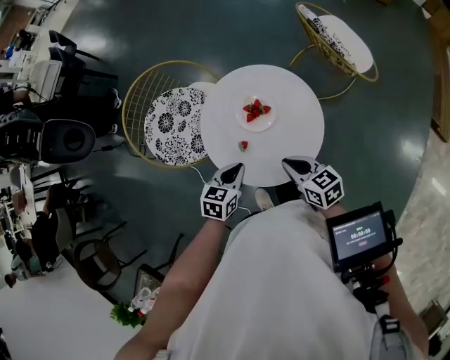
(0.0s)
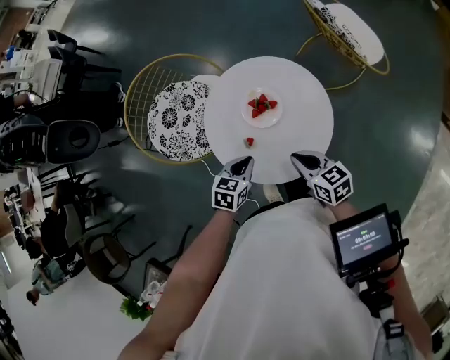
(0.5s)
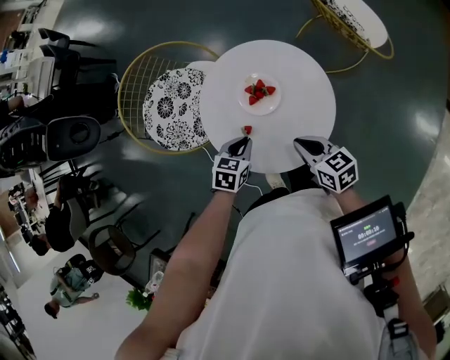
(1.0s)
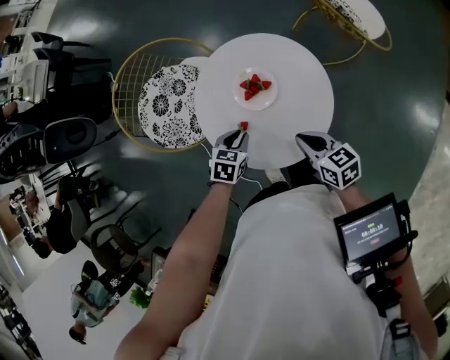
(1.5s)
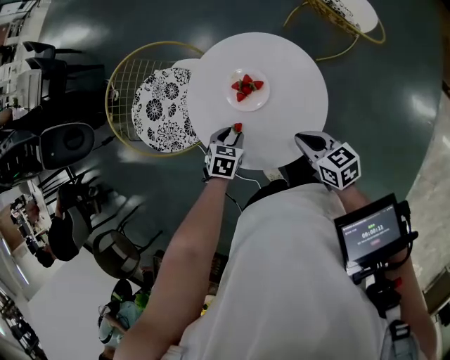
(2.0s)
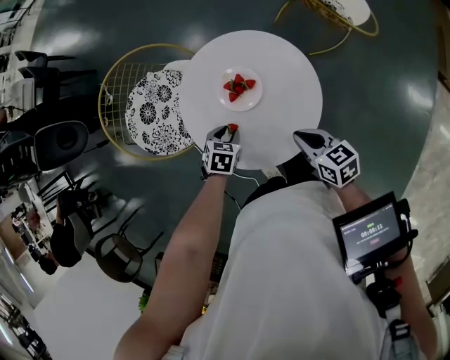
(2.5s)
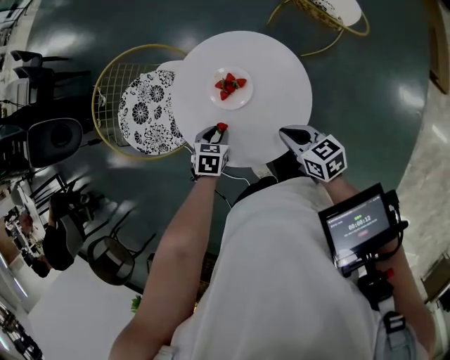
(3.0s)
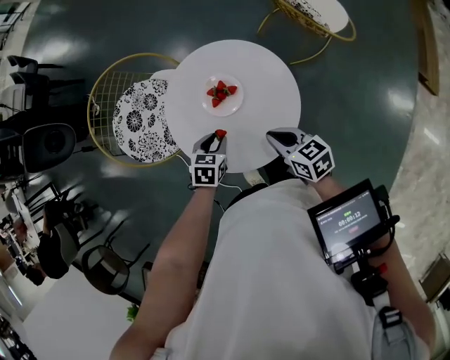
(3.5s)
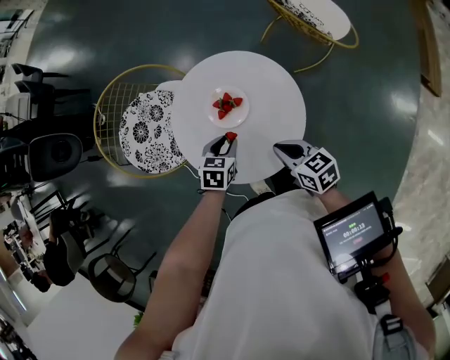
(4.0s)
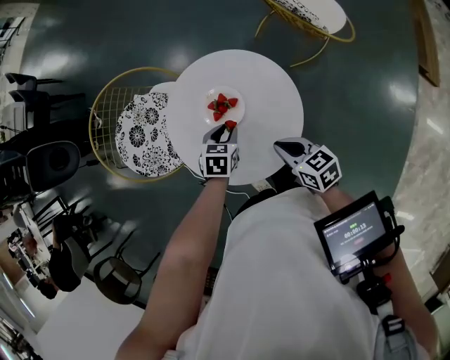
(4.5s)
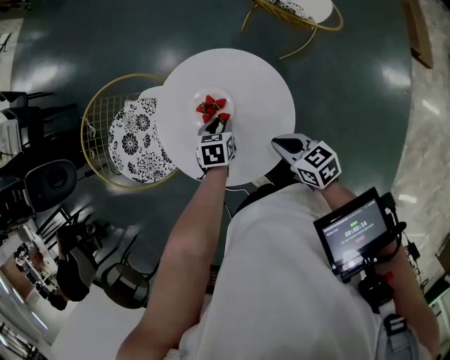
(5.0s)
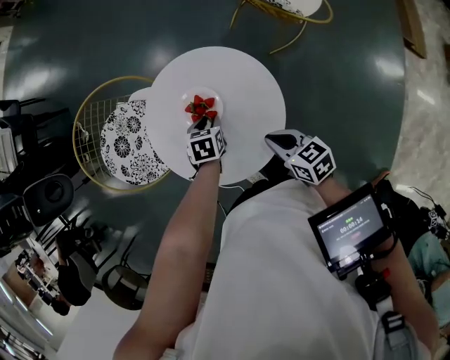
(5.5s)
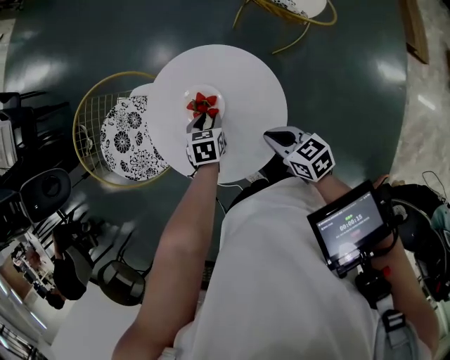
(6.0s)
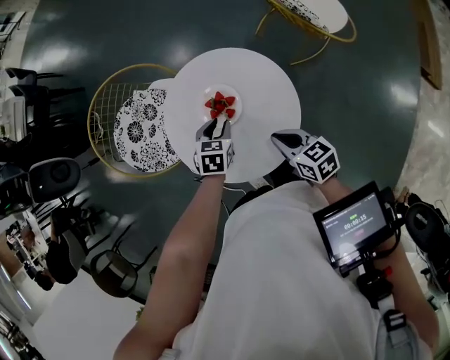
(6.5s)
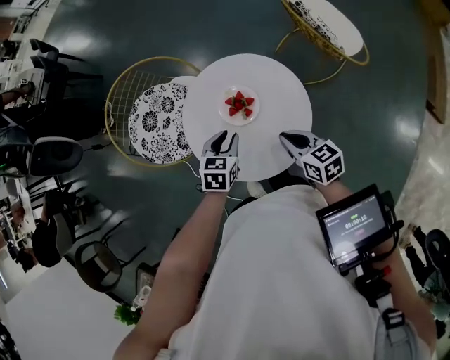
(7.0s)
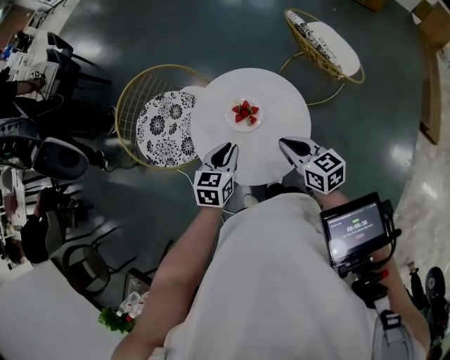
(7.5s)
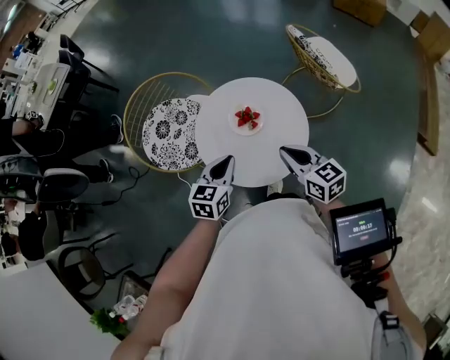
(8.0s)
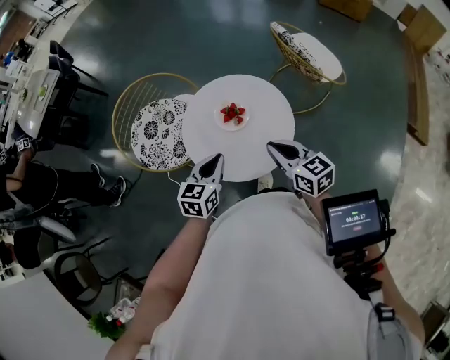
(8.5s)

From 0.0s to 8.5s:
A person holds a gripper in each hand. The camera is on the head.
From 0.0s to 2.0s: The left gripper heads downward and forward, covering some 15 cm, rotates approximately 30 degrees, and opens its fingers. Meanwhile the right gripper ends up roughly 5 cm from where it was.
From 2.0s to 4.0s: The left gripper moves to the right, about 5 cm.
From 6.5s to 8.5s: The right gripper goes some 10 cm upward, and rotates about 20 degrees. Meanwhile the left gripper goes some 20 cm upward and backward, swivels roughly 30 degrees, and closes its fingers.

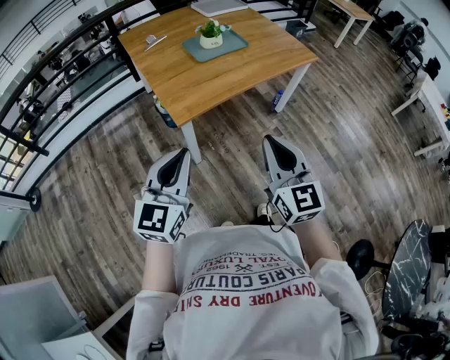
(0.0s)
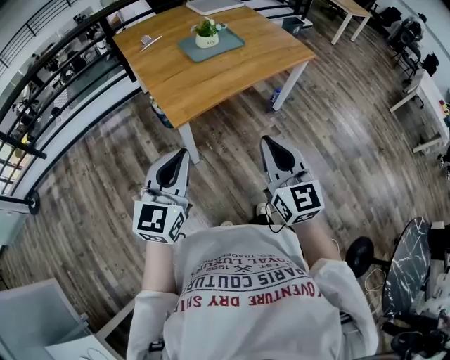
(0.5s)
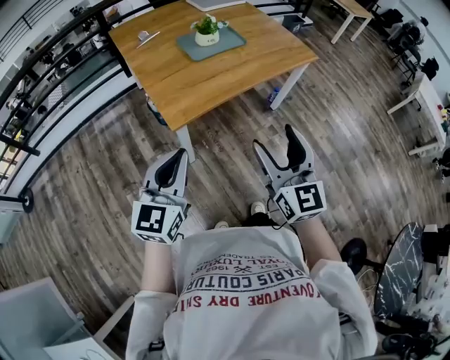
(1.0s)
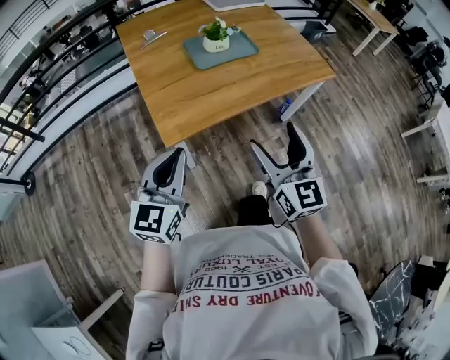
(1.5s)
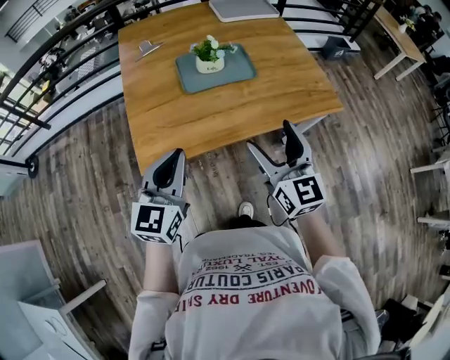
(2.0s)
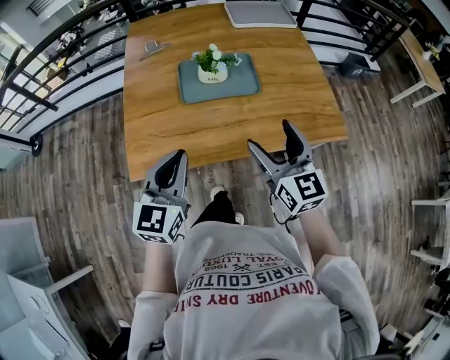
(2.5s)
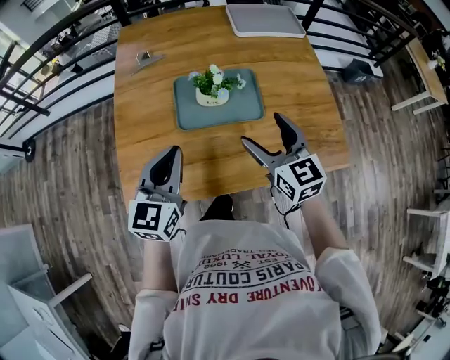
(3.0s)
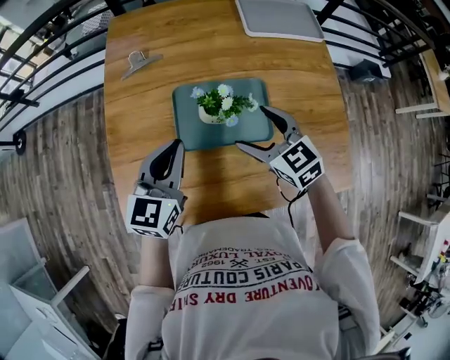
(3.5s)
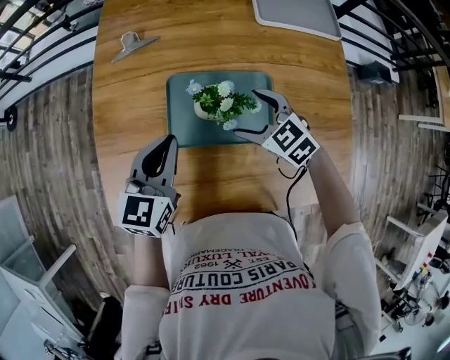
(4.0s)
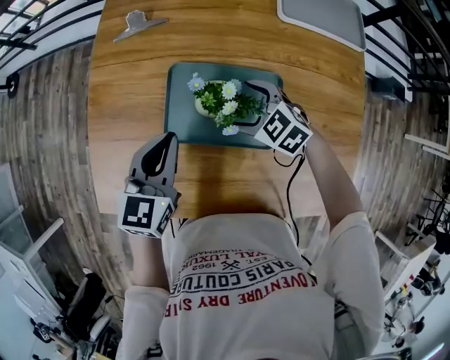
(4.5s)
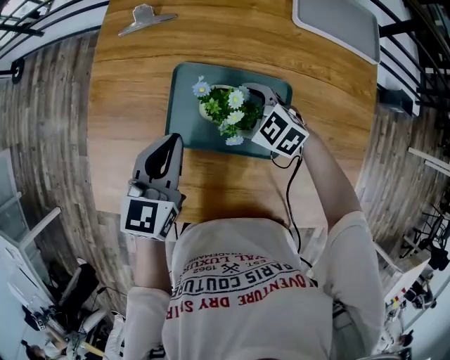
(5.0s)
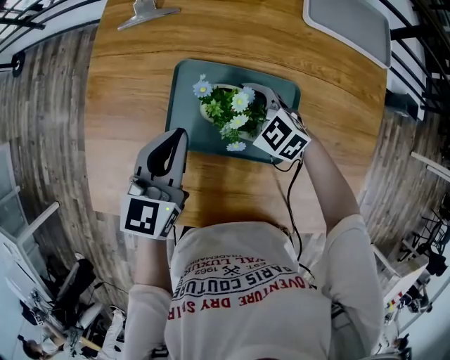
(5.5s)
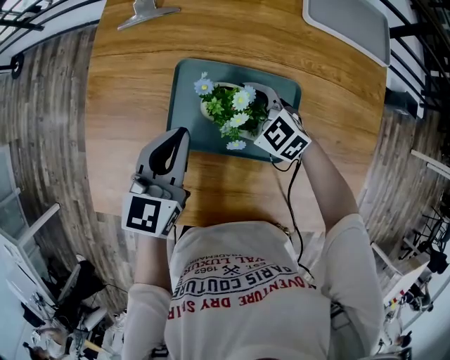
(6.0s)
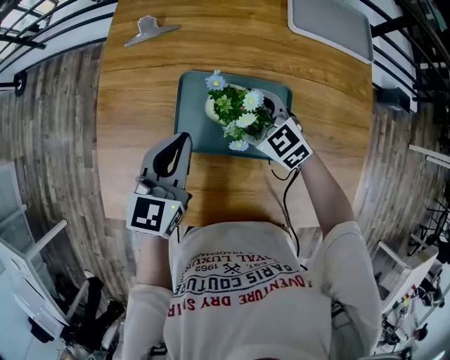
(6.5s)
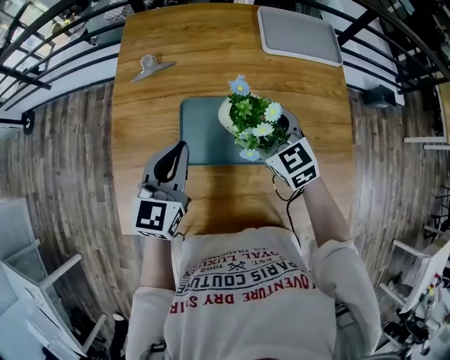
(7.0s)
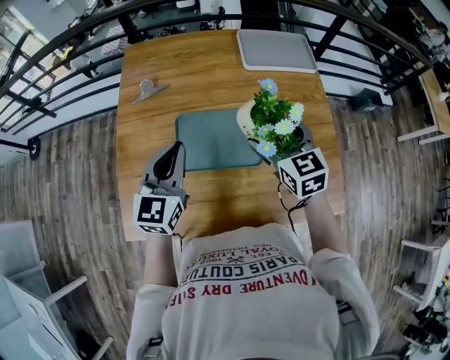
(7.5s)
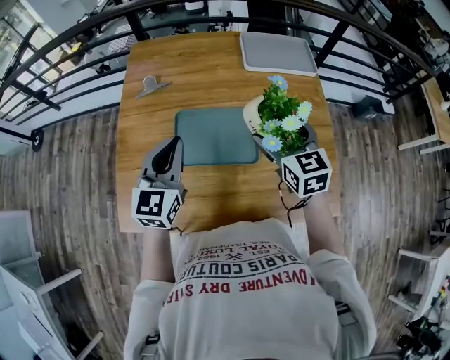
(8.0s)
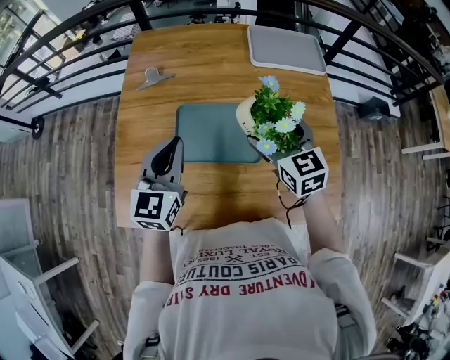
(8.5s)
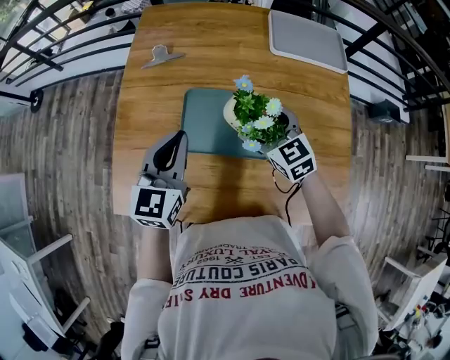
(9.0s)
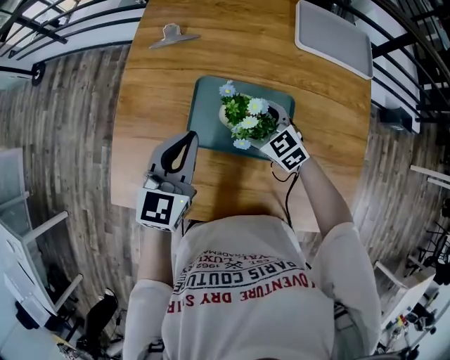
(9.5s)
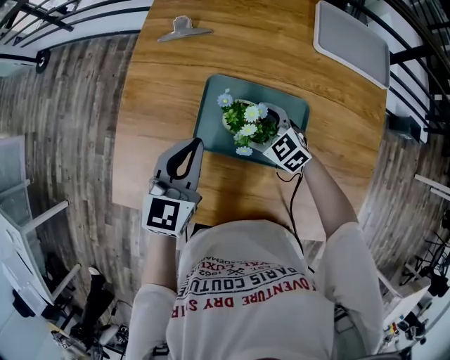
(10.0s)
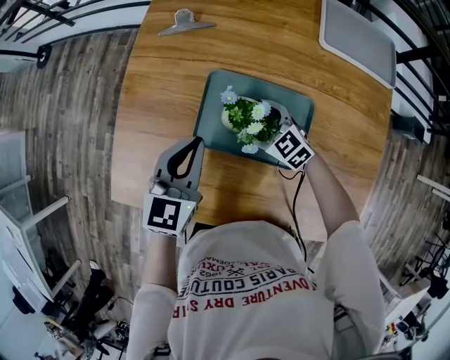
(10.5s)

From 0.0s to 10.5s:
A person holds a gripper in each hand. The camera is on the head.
From 0.0s to 2.0s: The right gripper is displaced forward by approximately 35 cm, and opens. Meanwhile the left gripper goes about 30 cm forward and to the right.
From 2.0s to 4.0s: The left gripper changes place by roughly 35 cm. The right gripper moves roughly 40 cm, and points its fingers approximately 40 degrees further downward.
From 4.0s to 6.5s: The right gripper shifts roughly 5 cm forward.
From 6.5s to 8.5s: The right gripper moves upward and to the right, about 20 cm, and turns by roughly 30 degrees. Meanwhile the left gripper heads upward, covering some 10 cm.
From 8.5s to 10.5s: The right gripper moves downward and to the left, roughly 30 cm, and rotates about 40 degrees; the left gripper travels downward by about 10 cm.

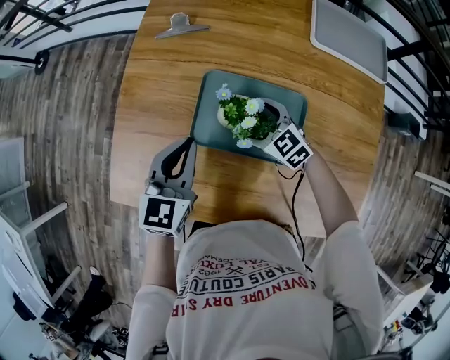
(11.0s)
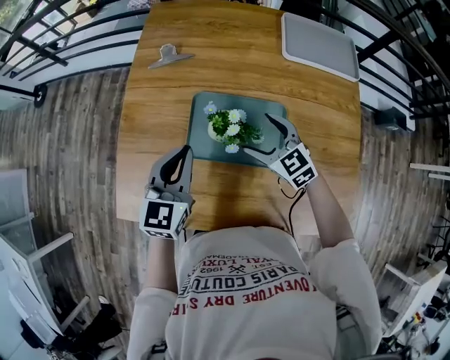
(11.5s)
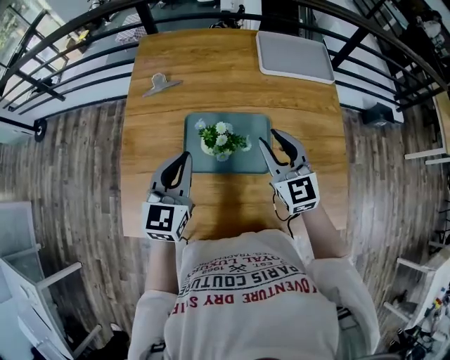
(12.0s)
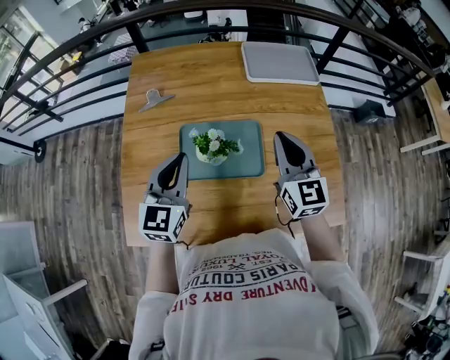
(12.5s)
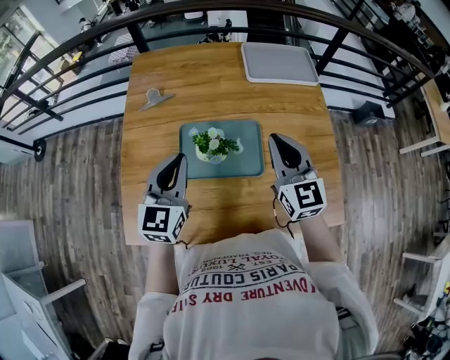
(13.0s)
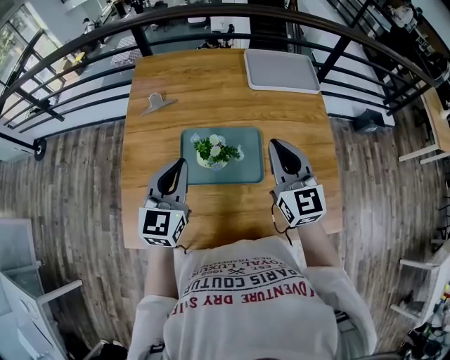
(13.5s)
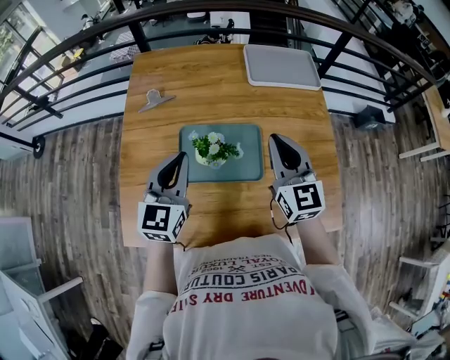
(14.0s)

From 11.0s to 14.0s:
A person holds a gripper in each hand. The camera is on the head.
From 11.0s to 12.5s: The right gripper goes some 25 cm upward, rotates approximately 60 degrees, and closes up; the left gripper is displaced upward by roughly 10 cm.
From 12.5s to 14.0s: There are only small adjustments of the grippers.

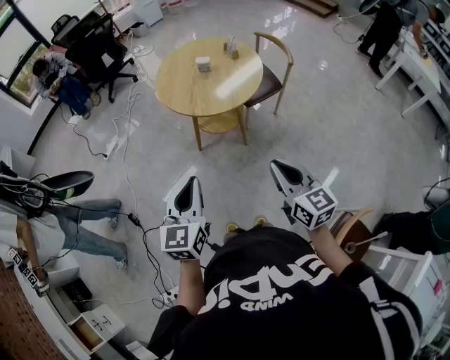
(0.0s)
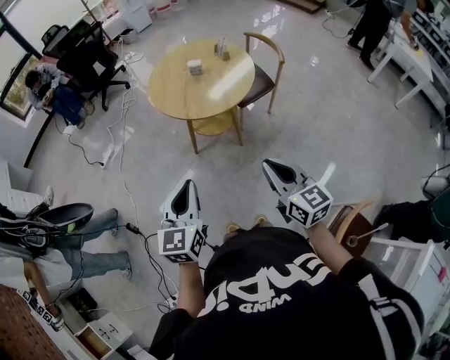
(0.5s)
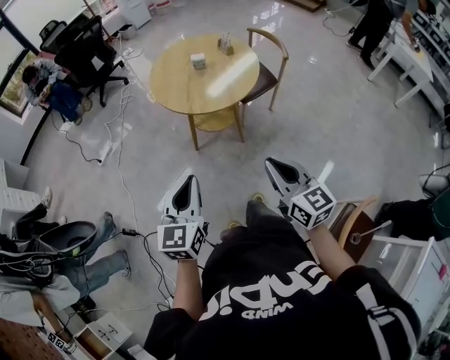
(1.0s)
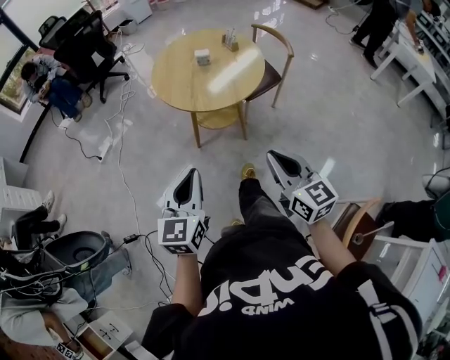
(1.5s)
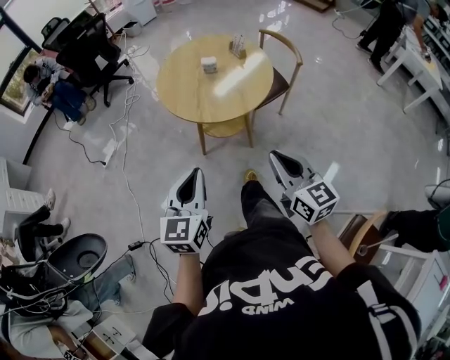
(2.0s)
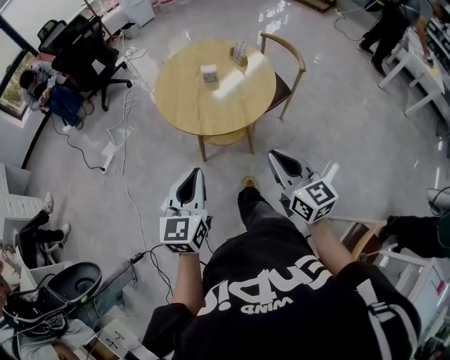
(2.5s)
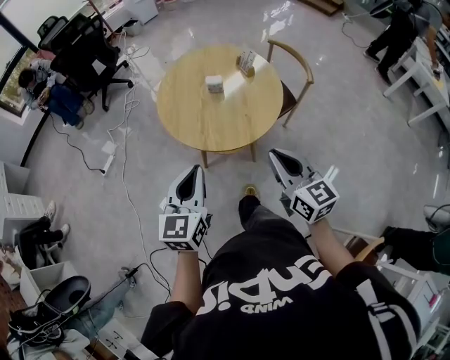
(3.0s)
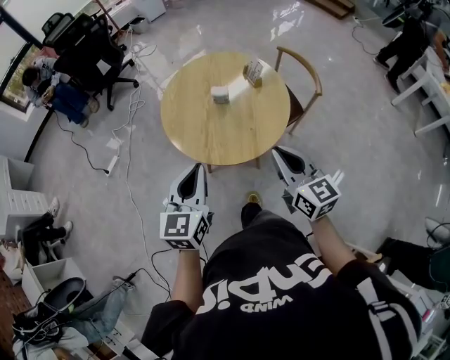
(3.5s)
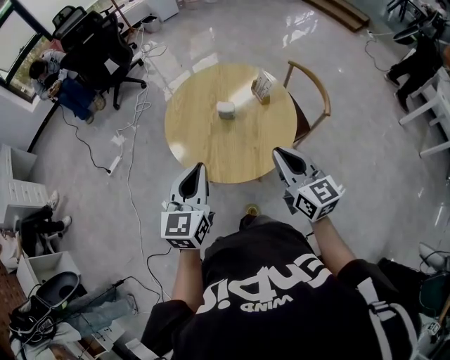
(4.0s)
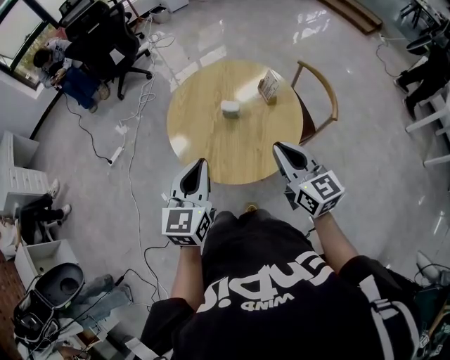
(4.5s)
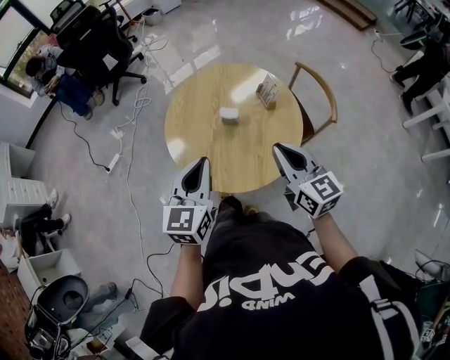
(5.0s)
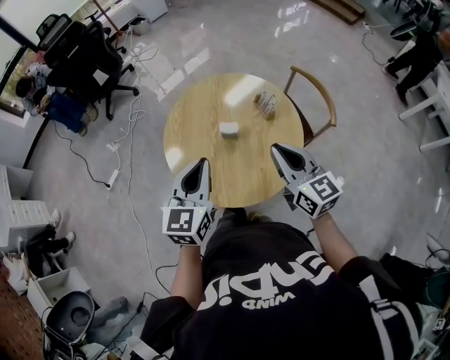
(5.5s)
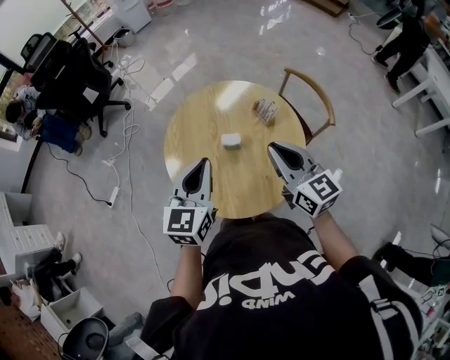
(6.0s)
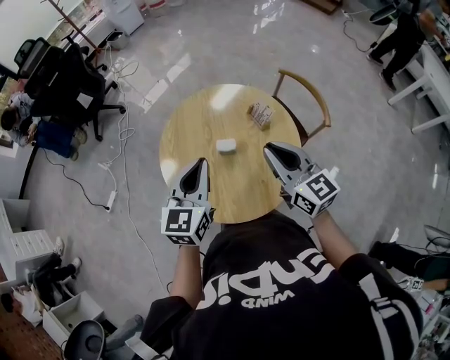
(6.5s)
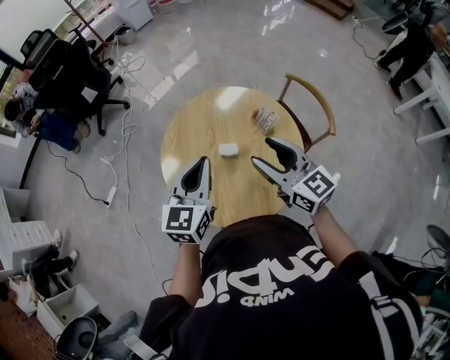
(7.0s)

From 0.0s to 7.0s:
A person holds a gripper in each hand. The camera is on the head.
From 0.0s to 2.0s: The left gripper is displaced forward by roughly 10 cm. The right gripper is displaced forward and to the left by about 10 cm.
From 2.0s to 3.5s: Both grippers move forward, about 20 cm.
From 3.5s to 5.0s: Both grippers move forward, approximately 15 cm.
From 5.0s to 7.0s: The grippers both shift forward by about 15 cm. The right gripper opens its fingers.
